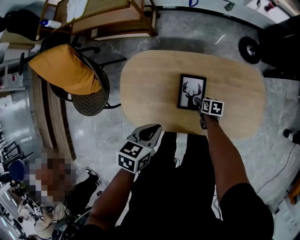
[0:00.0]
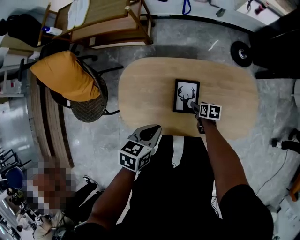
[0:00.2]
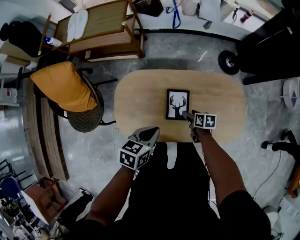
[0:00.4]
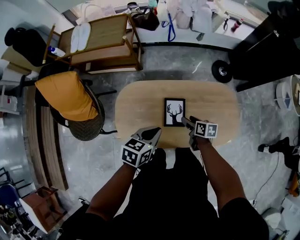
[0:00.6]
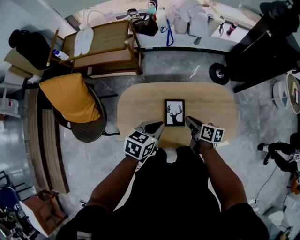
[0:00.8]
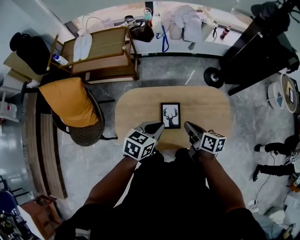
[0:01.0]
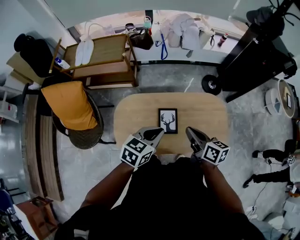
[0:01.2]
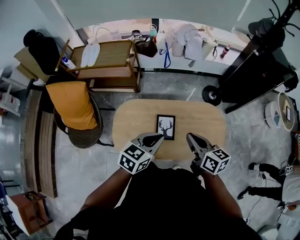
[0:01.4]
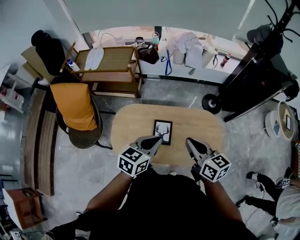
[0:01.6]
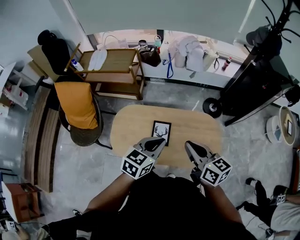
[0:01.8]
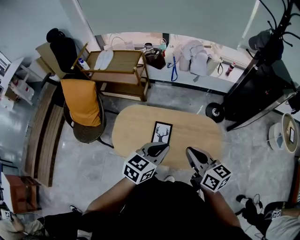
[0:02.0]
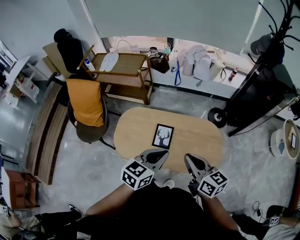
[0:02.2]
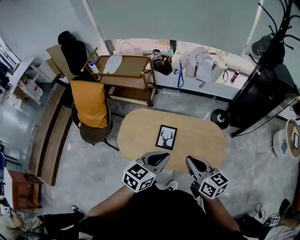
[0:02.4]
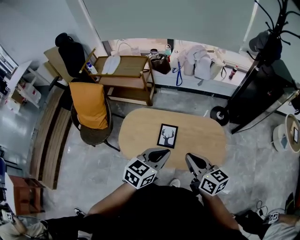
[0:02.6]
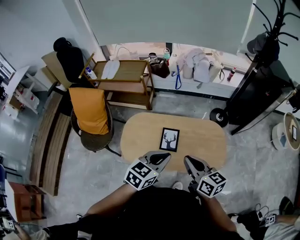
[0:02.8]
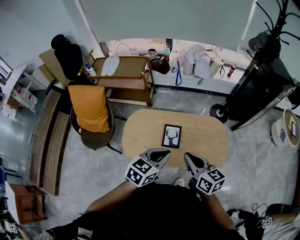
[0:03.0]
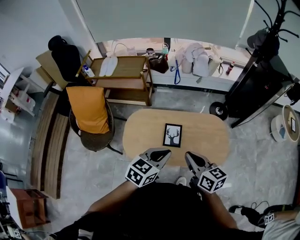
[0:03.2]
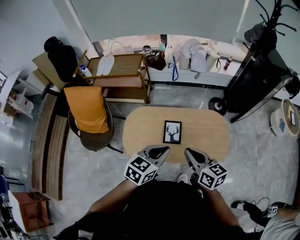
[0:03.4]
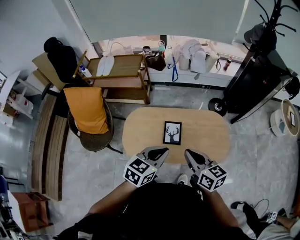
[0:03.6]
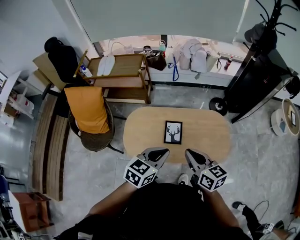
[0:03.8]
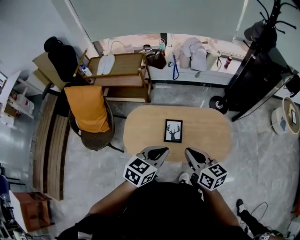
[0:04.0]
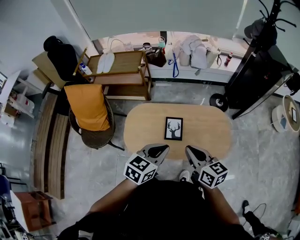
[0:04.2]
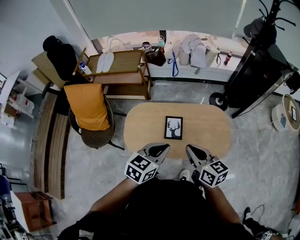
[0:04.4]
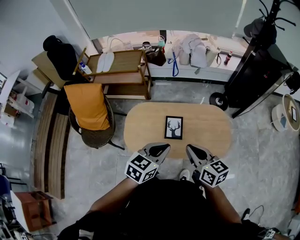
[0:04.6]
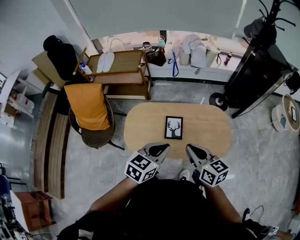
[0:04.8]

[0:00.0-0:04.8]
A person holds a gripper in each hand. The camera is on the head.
0.0 to 1.6 s: The right gripper is displaced upward by approximately 50 cm, angles its fingers upward, by some 40 degrees, and closes its fingers. Meanwhile the left gripper travels upward and to the right by some 25 cm, and swivels about 30 degrees.
1.6 to 3.2 s: The two grippers go approximately 10 cm backward.
3.2 to 4.8 s: The grippers move only a little.

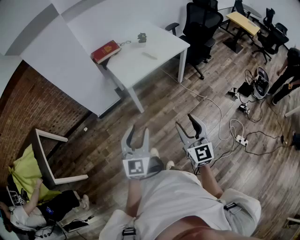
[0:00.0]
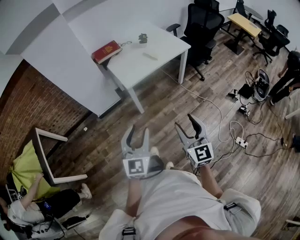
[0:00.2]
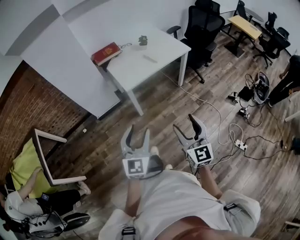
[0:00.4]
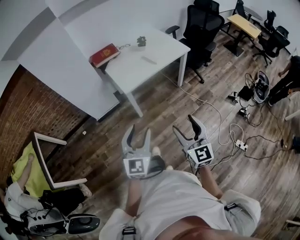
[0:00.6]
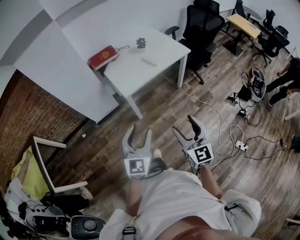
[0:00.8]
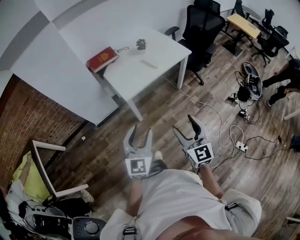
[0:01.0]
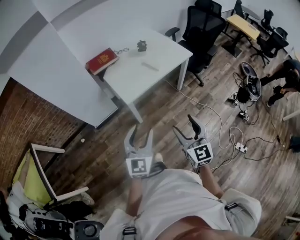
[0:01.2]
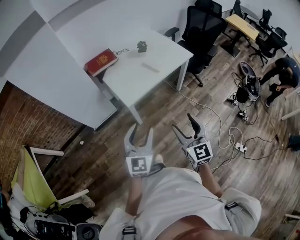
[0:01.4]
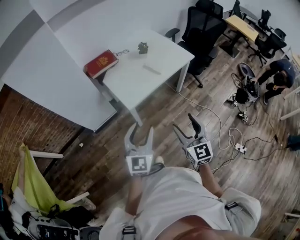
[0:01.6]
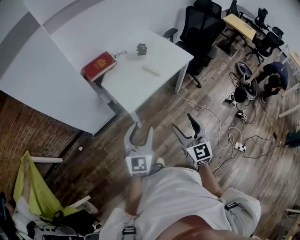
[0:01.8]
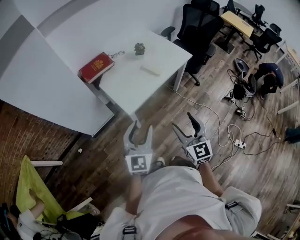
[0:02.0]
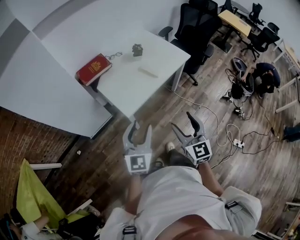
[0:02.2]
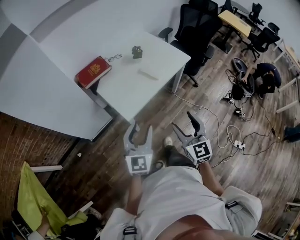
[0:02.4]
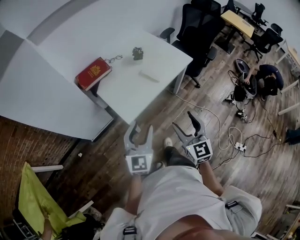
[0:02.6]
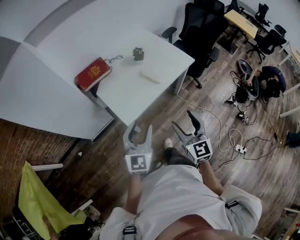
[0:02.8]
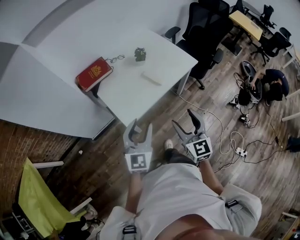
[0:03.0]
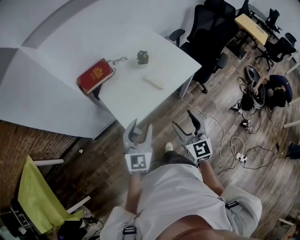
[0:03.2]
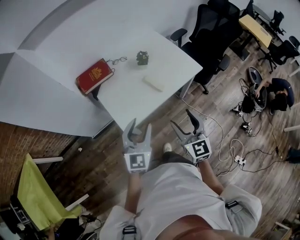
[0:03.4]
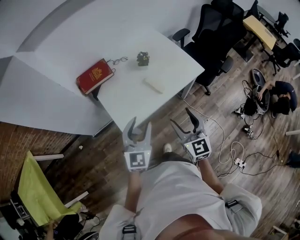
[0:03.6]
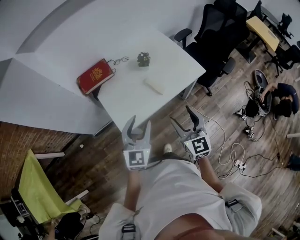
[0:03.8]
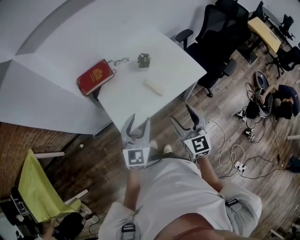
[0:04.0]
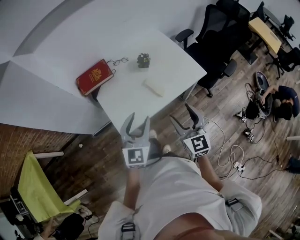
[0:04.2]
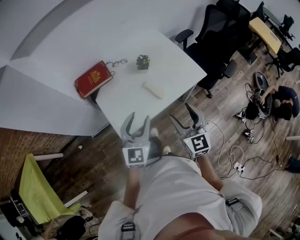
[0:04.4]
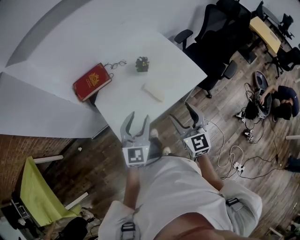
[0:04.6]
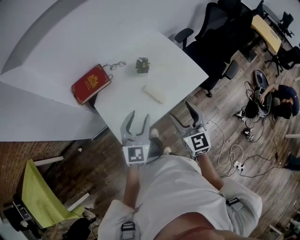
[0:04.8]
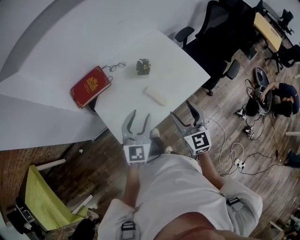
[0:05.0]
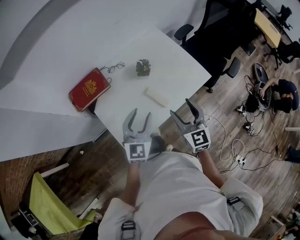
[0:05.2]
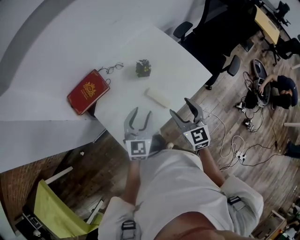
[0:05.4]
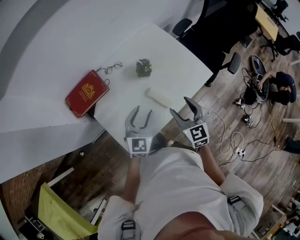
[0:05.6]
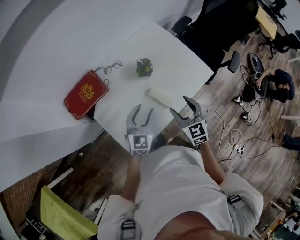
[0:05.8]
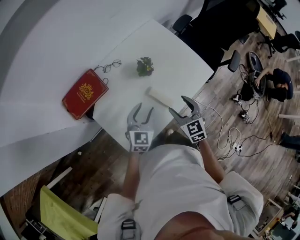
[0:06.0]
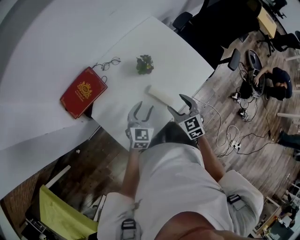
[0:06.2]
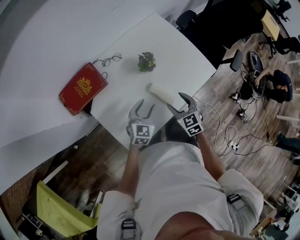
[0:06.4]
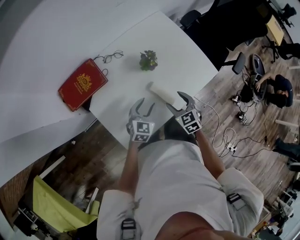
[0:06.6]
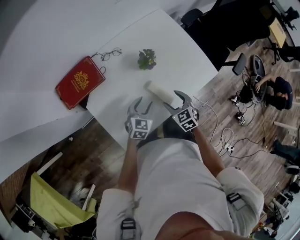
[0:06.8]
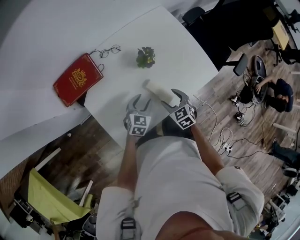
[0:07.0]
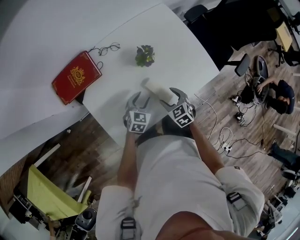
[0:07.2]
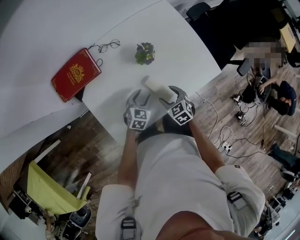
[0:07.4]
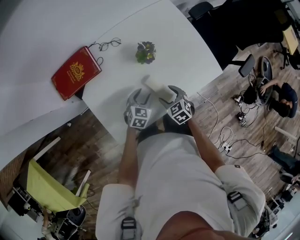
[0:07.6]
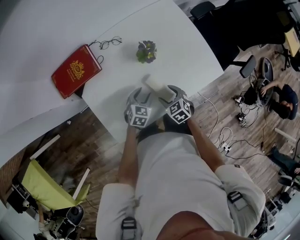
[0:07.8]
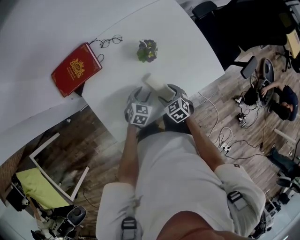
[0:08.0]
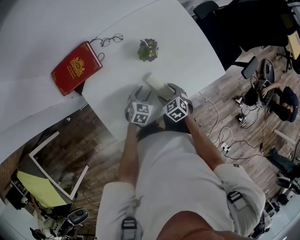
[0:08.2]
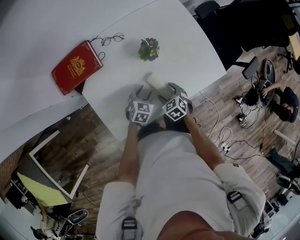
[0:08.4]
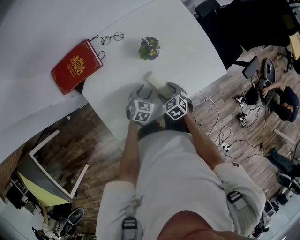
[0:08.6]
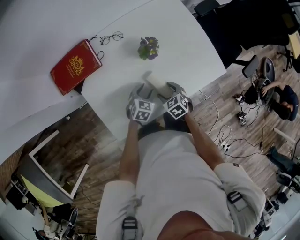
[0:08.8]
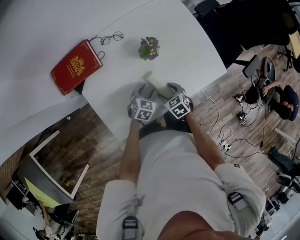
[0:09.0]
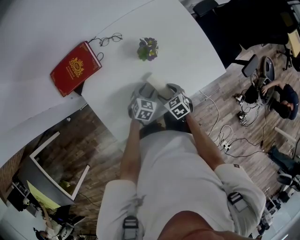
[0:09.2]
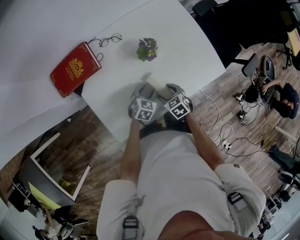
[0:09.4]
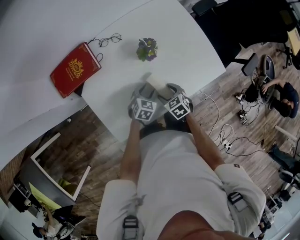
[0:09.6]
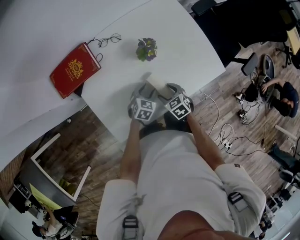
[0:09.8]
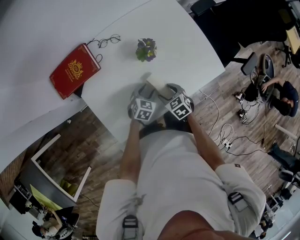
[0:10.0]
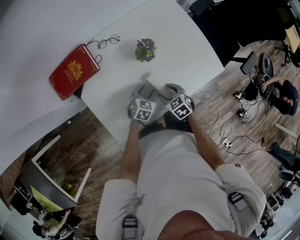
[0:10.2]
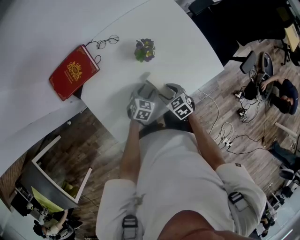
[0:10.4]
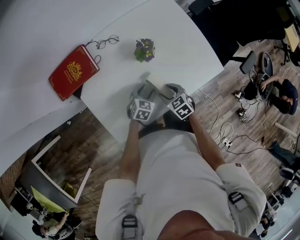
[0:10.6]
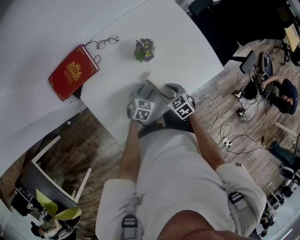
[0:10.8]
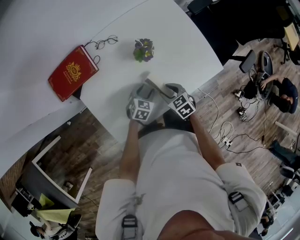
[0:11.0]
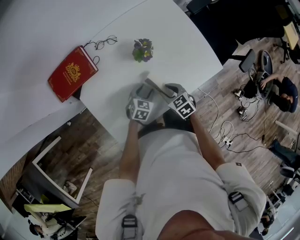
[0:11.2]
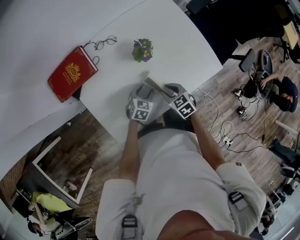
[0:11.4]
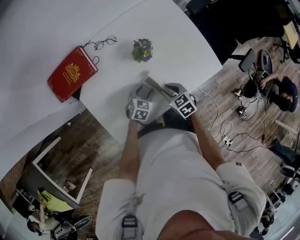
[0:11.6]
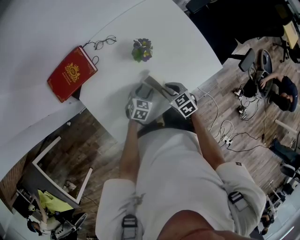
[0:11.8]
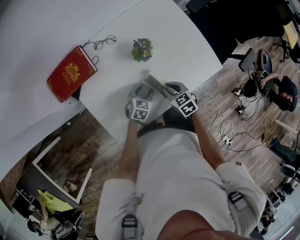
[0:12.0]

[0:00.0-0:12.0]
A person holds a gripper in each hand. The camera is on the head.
0.0 to 1.6 s: The two grippers go roughly 20 cm forward.
1.6 to 3.0 s: Both grippers travel together forward, roughly 20 cm.
3.0 to 4.4 s: The left gripper heads forward and to the right, covering roughly 15 cm. The right gripper travels forward by approximately 15 cm.
4.4 to 6.0 s: Both grippers travel together forward and downward, some 25 cm. The left gripper changes its angle by some 20 degrees; the right gripper changes its angle by about 20 degrees.
6.0 to 7.6 s: Both grippers move downward, some 15 cm. The right gripper turns by about 30 degrees, while the left gripper turns by about 20 degrees.
7.6 to 10.4 s: The grippers stay close to where they were, moving slightly.
10.4 to 12.0 s: The right gripper closes.

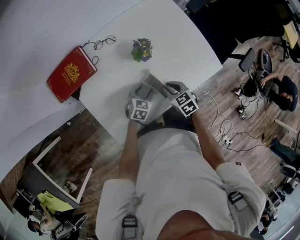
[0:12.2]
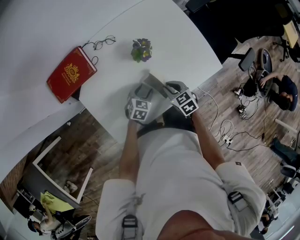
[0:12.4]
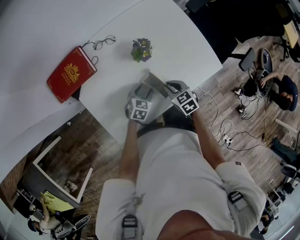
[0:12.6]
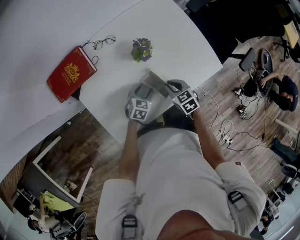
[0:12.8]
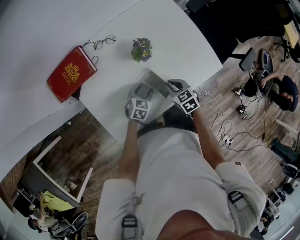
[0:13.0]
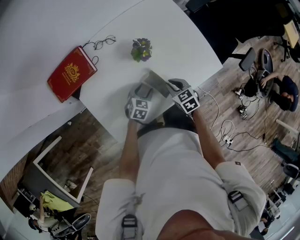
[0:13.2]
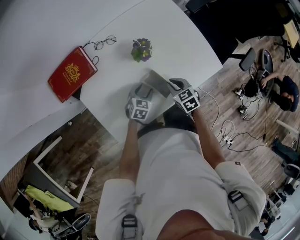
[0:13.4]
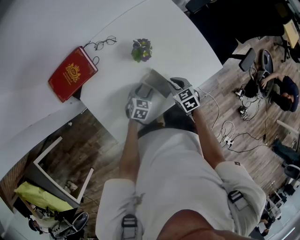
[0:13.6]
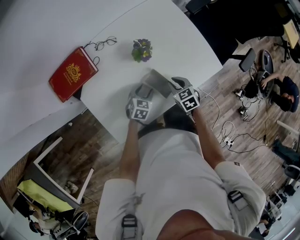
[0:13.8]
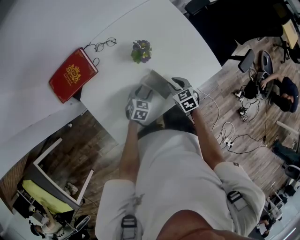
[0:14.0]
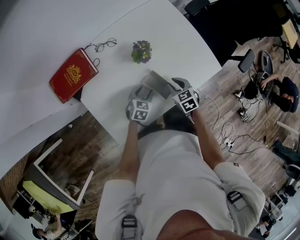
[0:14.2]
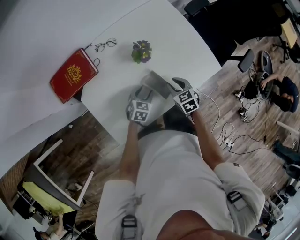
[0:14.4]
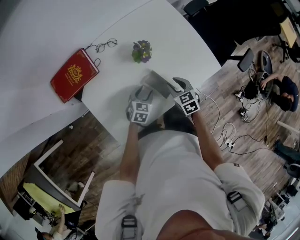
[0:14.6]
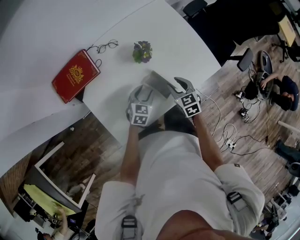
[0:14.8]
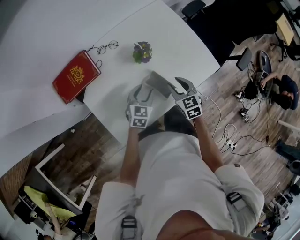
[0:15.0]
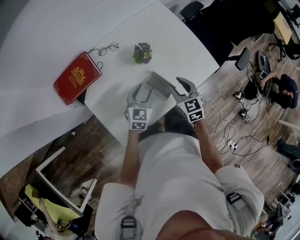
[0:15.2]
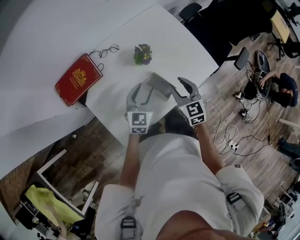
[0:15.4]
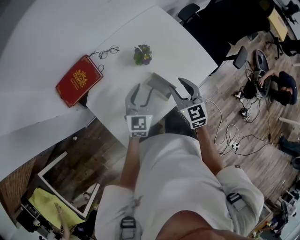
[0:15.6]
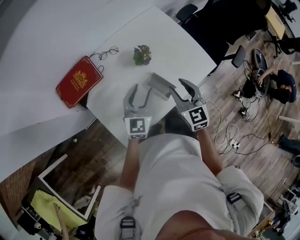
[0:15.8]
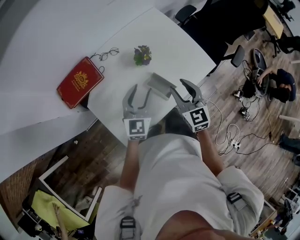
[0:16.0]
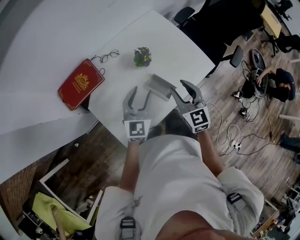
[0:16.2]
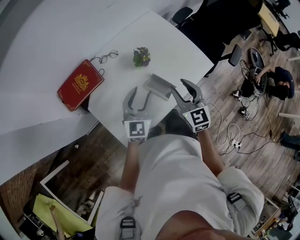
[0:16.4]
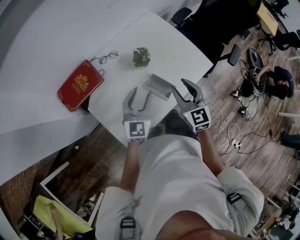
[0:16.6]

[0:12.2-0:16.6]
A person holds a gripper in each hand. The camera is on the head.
12.2 to 13.6 s: The grippers move only a little.
13.6 to 15.2 s: The grippers both shift upward by some 10 cm. The right gripper turns by roughly 20 degrees, and opens. Meanwhile the left gripper changes its angle by about 20 degrees.
15.2 to 16.6 s: The grippers both shift upward by about 10 cm.

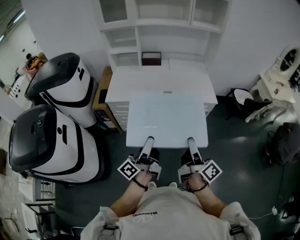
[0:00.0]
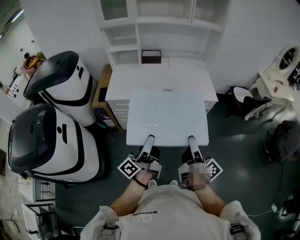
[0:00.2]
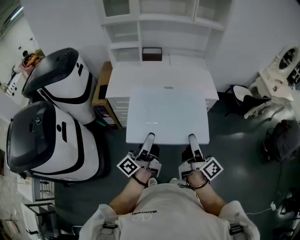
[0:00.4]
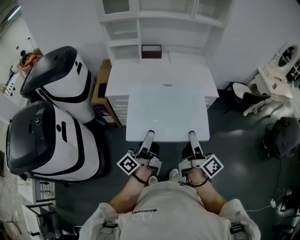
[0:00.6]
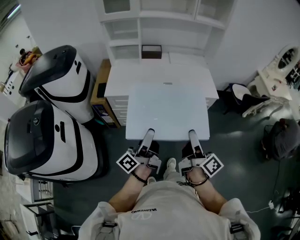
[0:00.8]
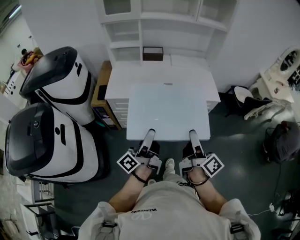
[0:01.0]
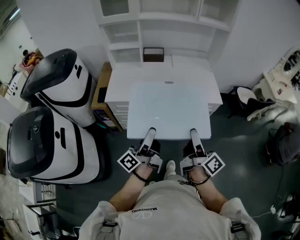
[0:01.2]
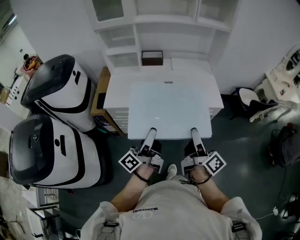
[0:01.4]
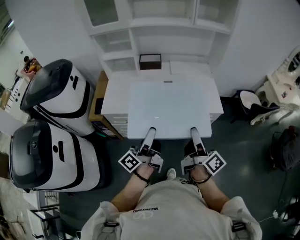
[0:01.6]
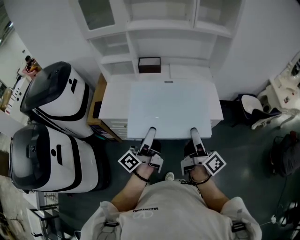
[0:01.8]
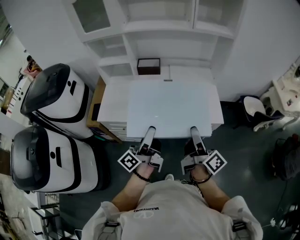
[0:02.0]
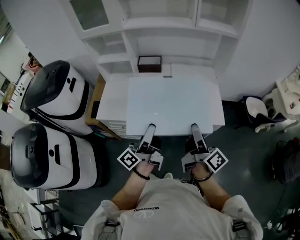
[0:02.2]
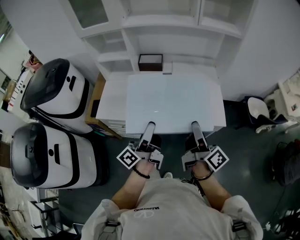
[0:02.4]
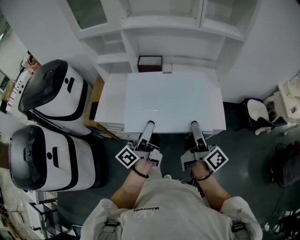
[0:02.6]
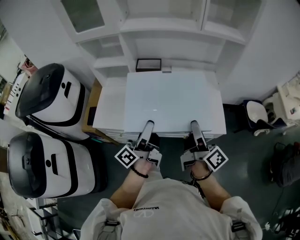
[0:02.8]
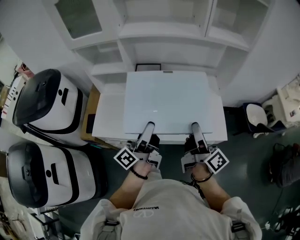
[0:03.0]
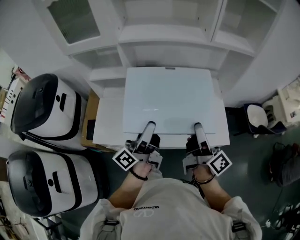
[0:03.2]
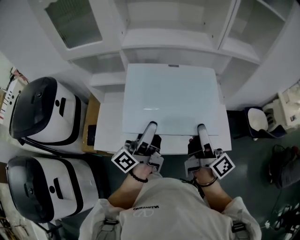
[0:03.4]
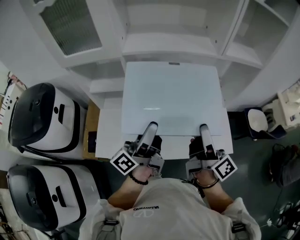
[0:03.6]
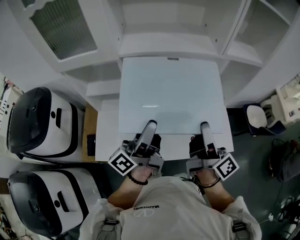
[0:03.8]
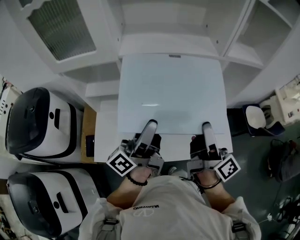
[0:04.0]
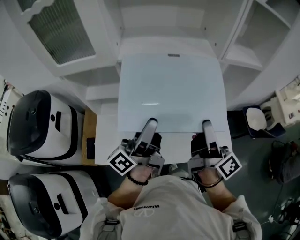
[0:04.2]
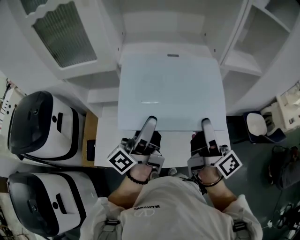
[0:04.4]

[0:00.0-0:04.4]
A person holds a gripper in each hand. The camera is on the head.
0.0 to 1.4 s: Both grippers travel together forward, some 15 cm.
1.4 to 3.0 s: Both grippers travel together forward, approximately 30 cm.
3.0 to 4.4 s: The two grippers go about 20 cm forward and upward.
